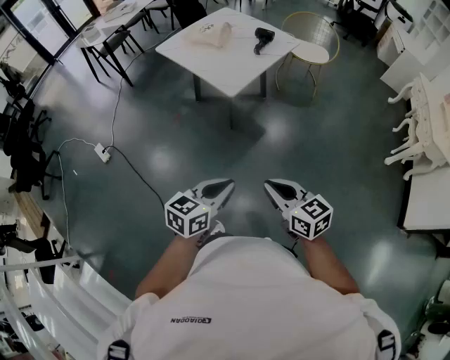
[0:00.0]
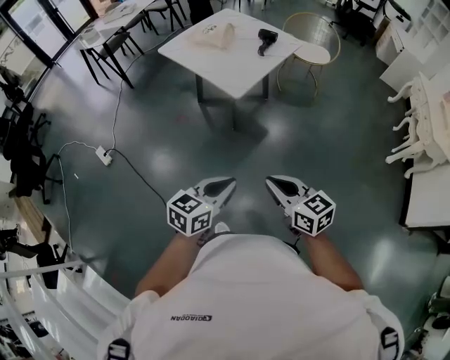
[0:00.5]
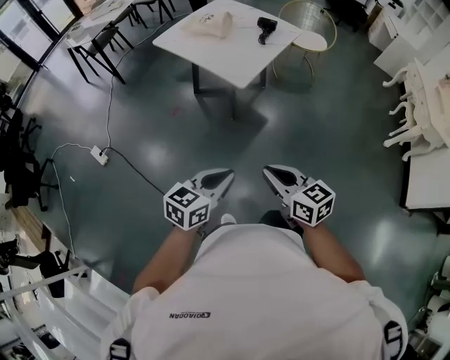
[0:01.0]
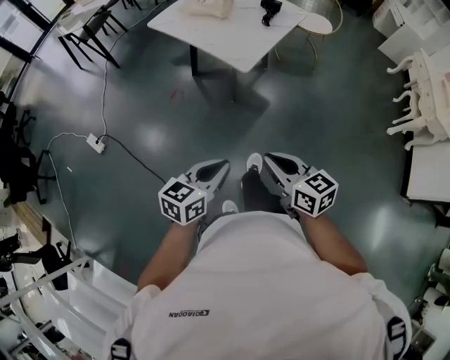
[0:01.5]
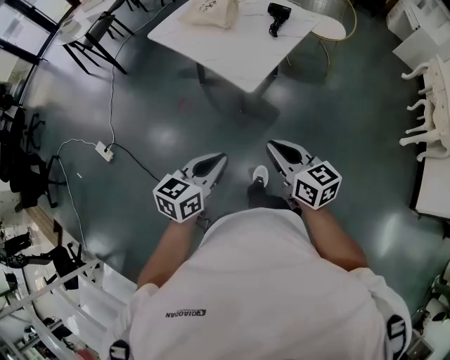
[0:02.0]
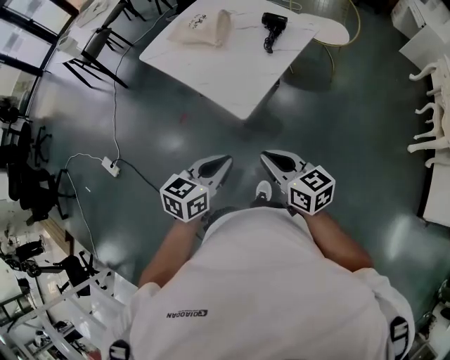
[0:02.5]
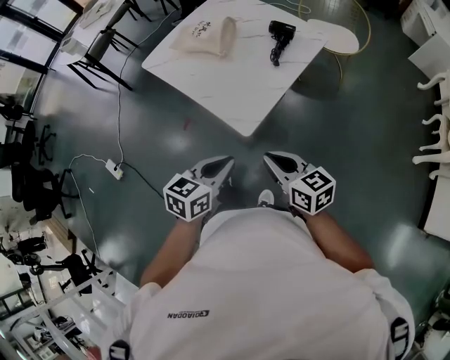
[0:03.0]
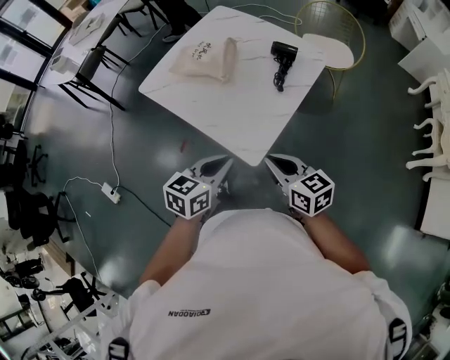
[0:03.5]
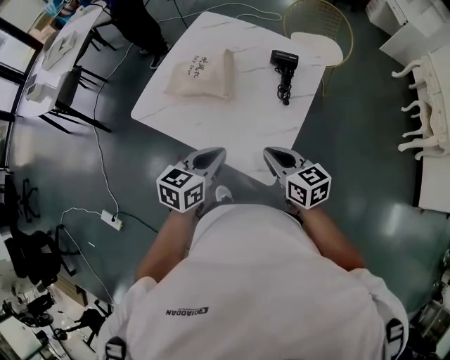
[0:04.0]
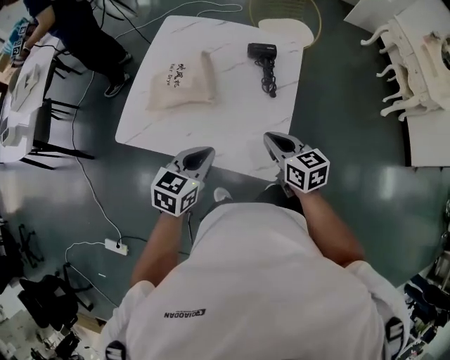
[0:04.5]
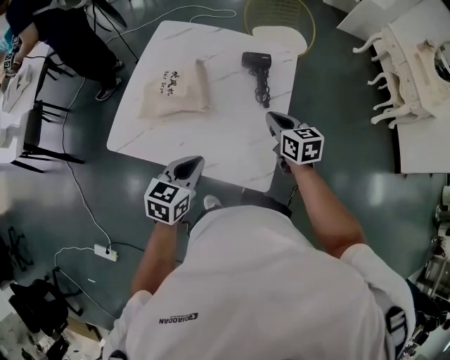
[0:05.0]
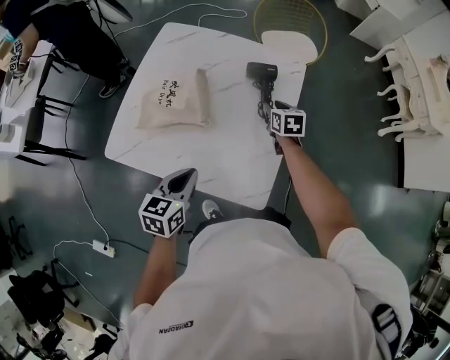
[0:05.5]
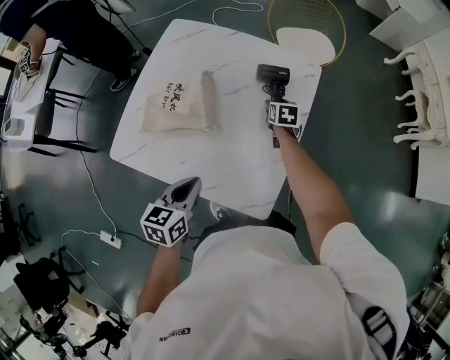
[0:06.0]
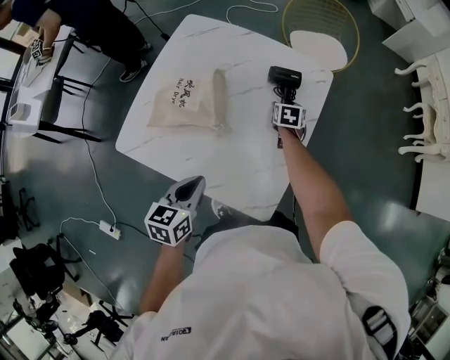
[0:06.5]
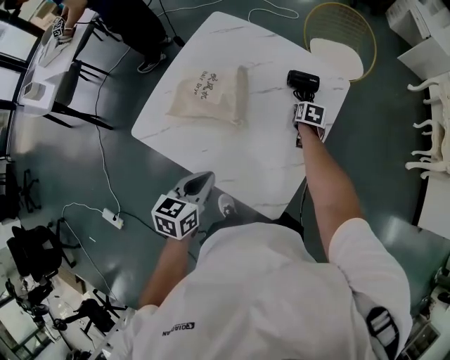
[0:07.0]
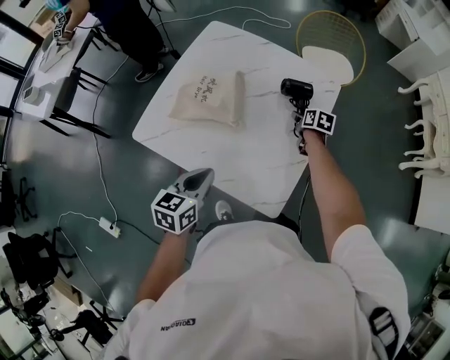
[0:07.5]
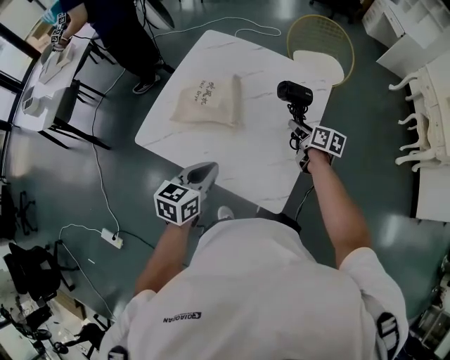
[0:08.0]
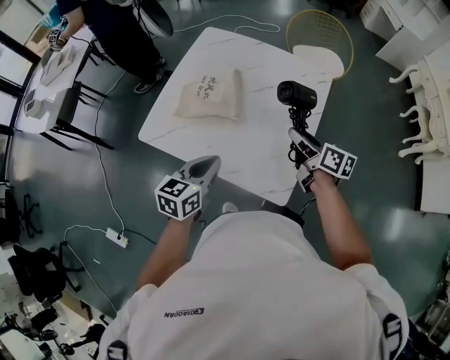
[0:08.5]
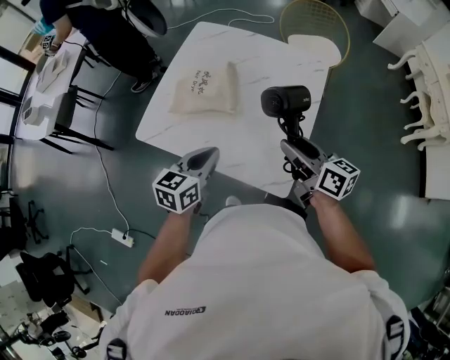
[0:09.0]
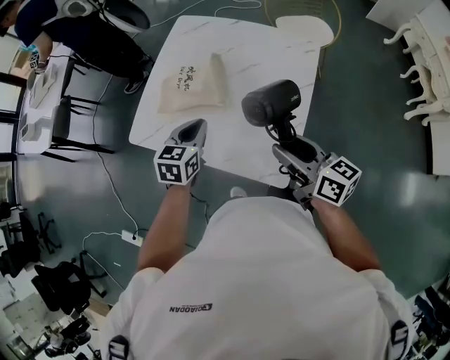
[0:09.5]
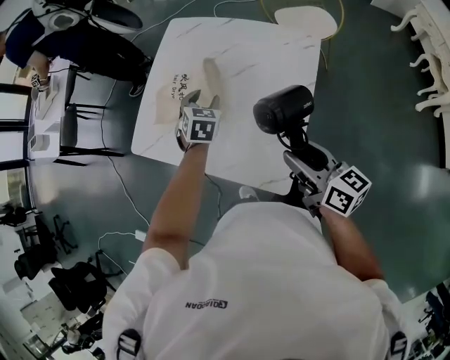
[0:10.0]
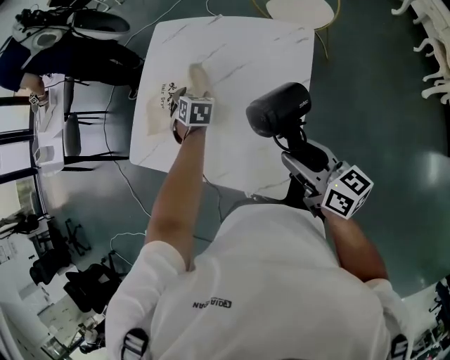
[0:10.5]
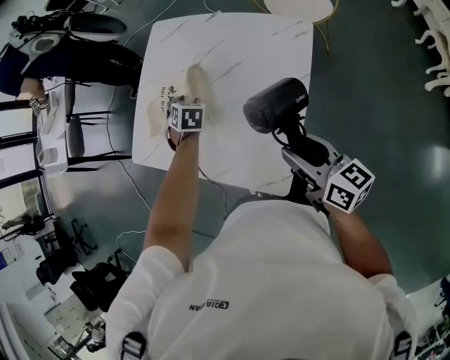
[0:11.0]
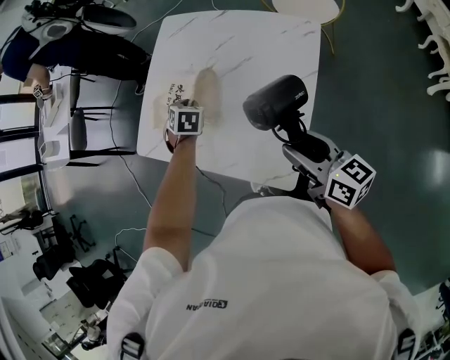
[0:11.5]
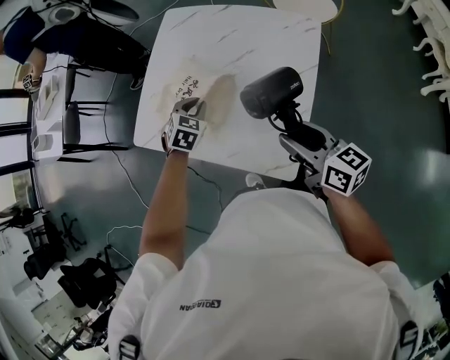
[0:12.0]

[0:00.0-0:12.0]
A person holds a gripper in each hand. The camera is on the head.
0:00.0 to 0:02.0: The grippers both shift forward and to the left by about 25 cm.
0:02.0 to 0:04.0: Both grippers are carried forward, roughly 40 cm.
0:04.0 to 0:06.0: The left gripper travels forward, downward and to the left by about 10 cm. The right gripper travels forward and downward by roughly 40 cm, changes its angle by roughly 40 degrees, and opens its fingers.
0:06.0 to 0:08.0: The left gripper shifts by about 5 cm. Meanwhile the right gripper shifts approximately 15 cm backward and upward, and changes its angle by approximately 30 degrees.
0:08.0 to 0:10.0: The right gripper goes approximately 20 cm backward and upward, and turns by about 30 degrees; the left gripper is displaced forward by about 20 cm, rotates about 40 degrees, and opens its fingers.
0:10.0 to 0:12.0: The left gripper shifts some 5 cm to the left, travels forward and back again, roughly 5 cm each way, and closes.

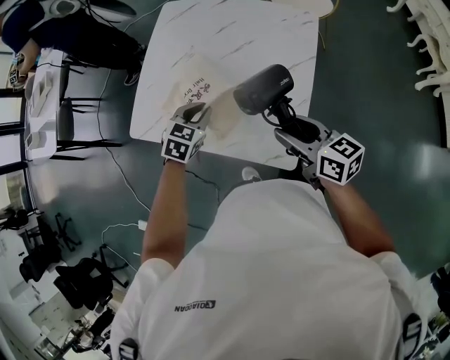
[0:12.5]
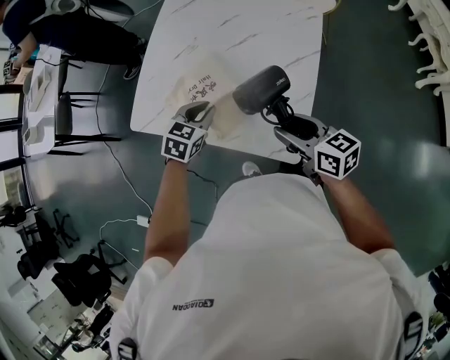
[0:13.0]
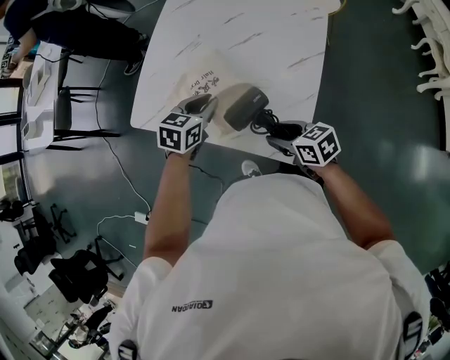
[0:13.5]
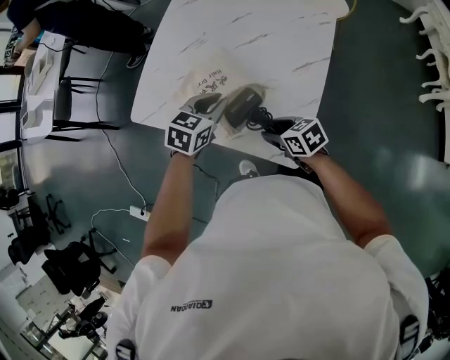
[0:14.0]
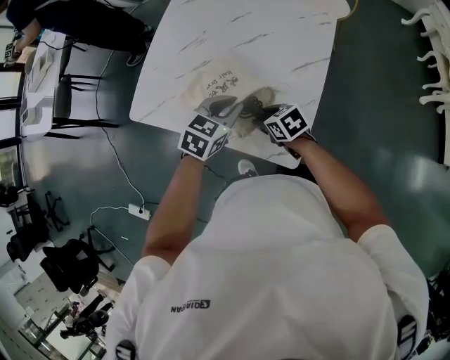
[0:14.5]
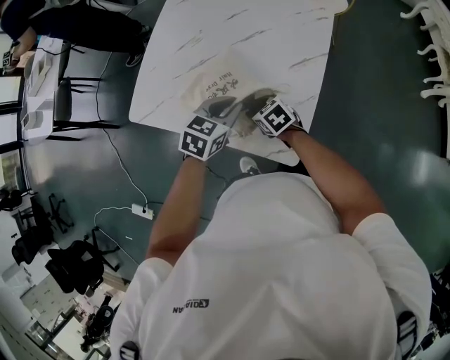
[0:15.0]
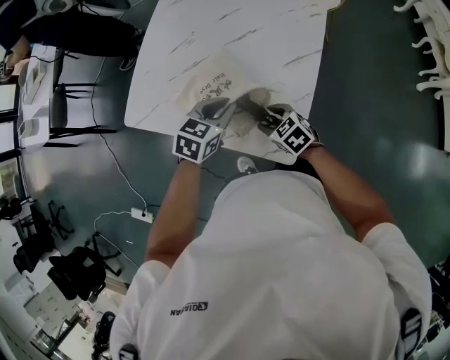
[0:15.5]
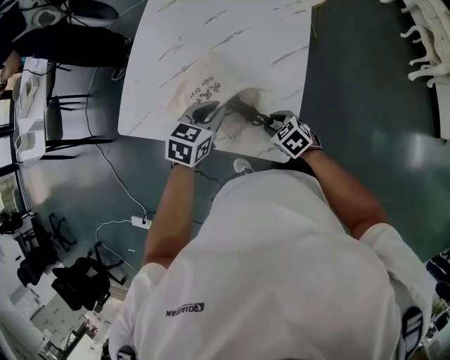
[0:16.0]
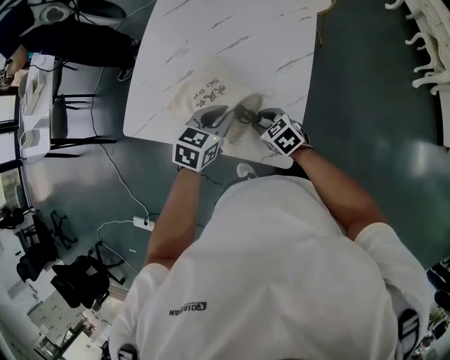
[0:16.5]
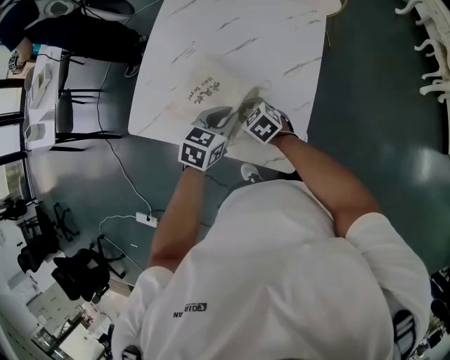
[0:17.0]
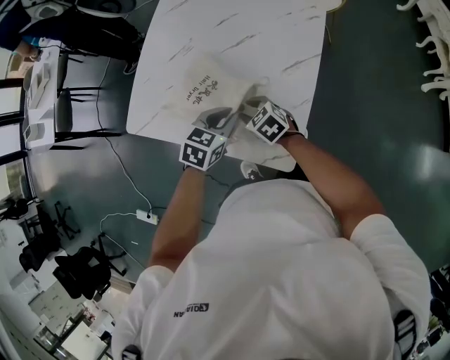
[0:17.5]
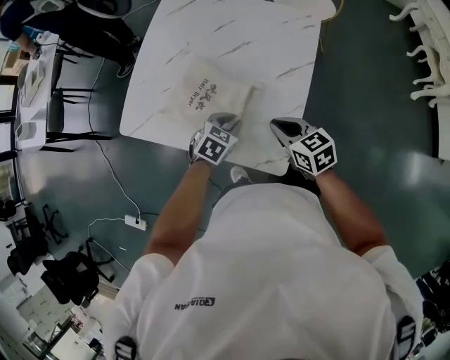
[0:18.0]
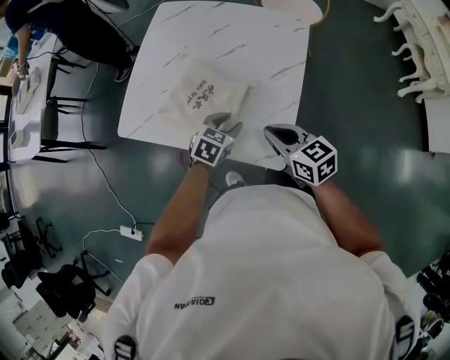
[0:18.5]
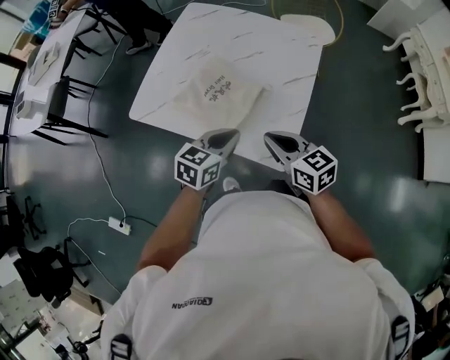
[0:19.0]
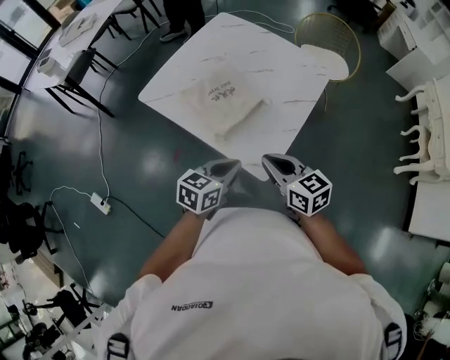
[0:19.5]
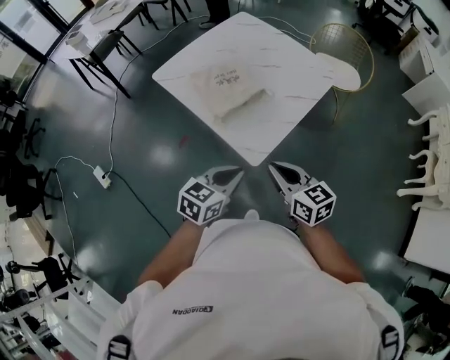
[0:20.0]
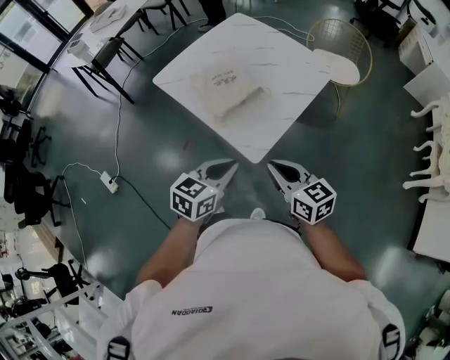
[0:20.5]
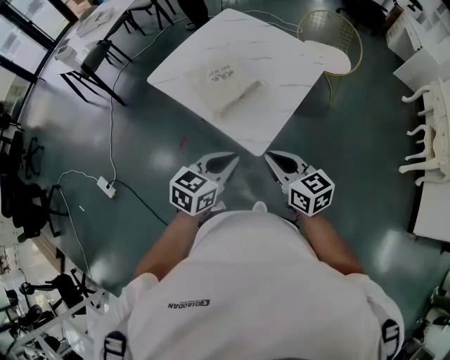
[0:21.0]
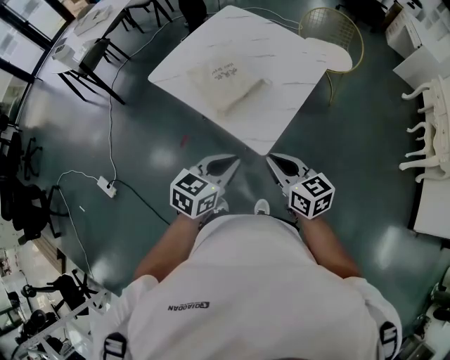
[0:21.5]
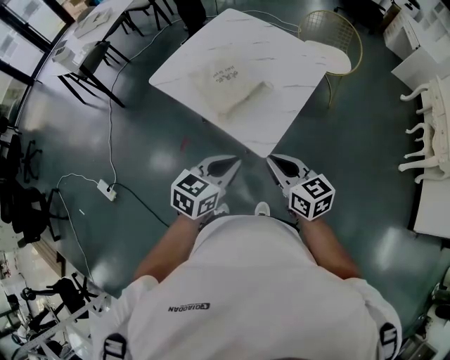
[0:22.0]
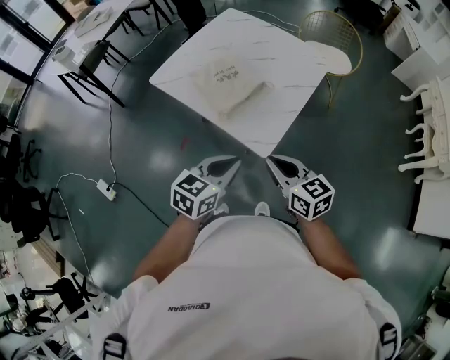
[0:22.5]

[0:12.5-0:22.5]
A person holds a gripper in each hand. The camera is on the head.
0:12.5 to 0:14.5: The left gripper is displaced to the right by roughly 5 cm, while the right gripper travels downward and to the left by roughly 20 cm, and points its fingers approximately 30 degrees further downward.
0:14.5 to 0:16.5: The right gripper travels to the right and back again, roughly 5 cm each way.
0:16.5 to 0:18.5: The left gripper heads downward, covering some 5 cm, and opens up. Meanwhile the right gripper goes about 15 cm upward, changes its angle by roughly 20 degrees, and closes.
0:18.5 to 0:20.5: The left gripper goes about 35 cm backward and upward, swivels some 40 degrees, and closes up, while the right gripper moves backward and to the right, approximately 20 cm, and turns by some 20 degrees.
0:20.5 to 0:22.5: The right gripper is displaced to the left by approximately 5 cm.

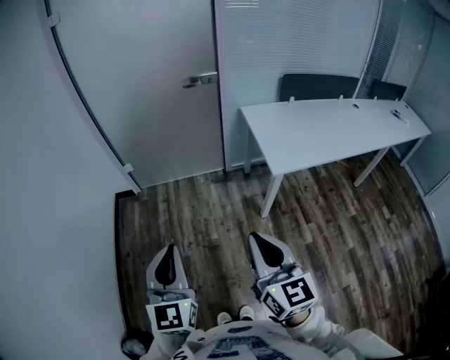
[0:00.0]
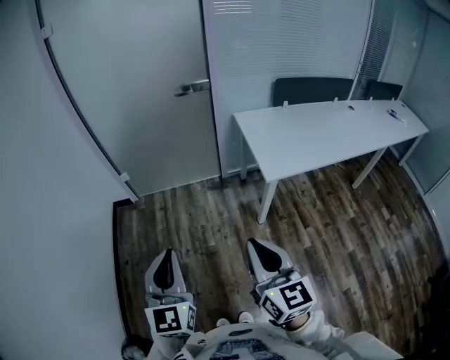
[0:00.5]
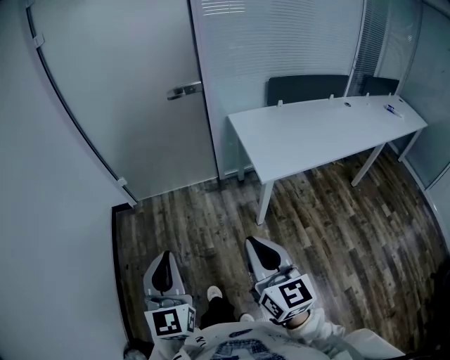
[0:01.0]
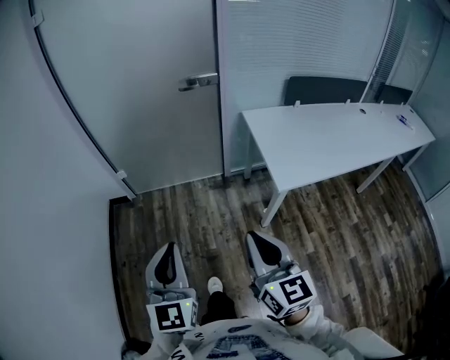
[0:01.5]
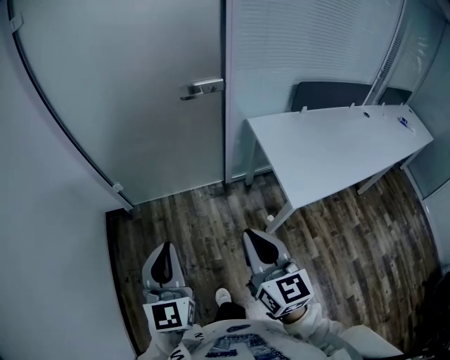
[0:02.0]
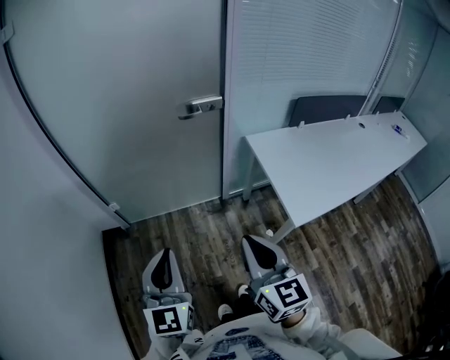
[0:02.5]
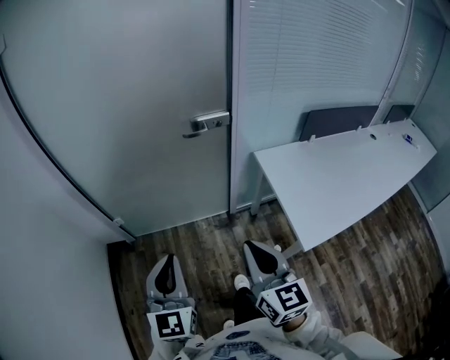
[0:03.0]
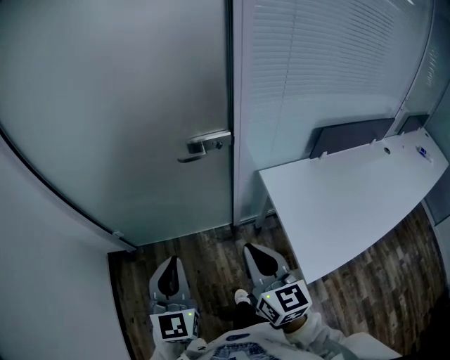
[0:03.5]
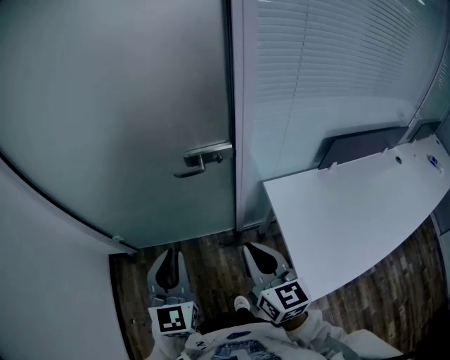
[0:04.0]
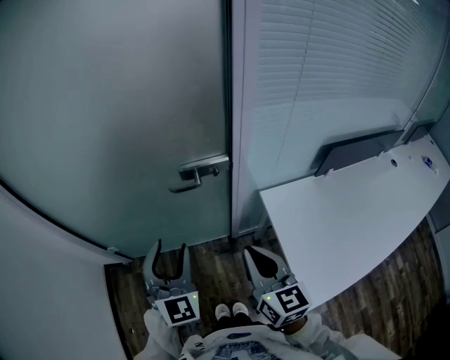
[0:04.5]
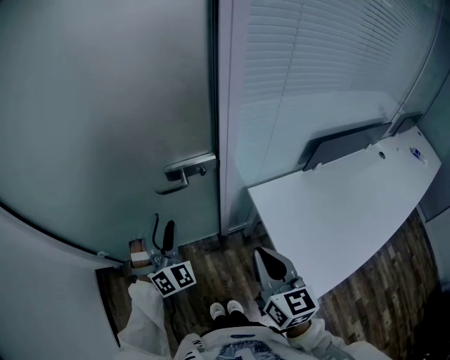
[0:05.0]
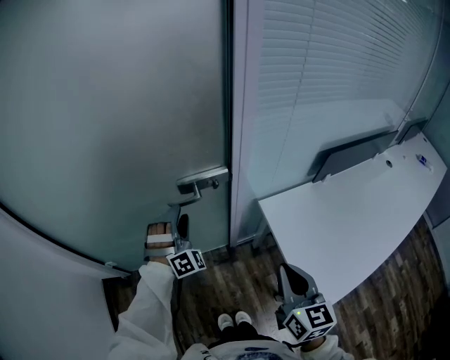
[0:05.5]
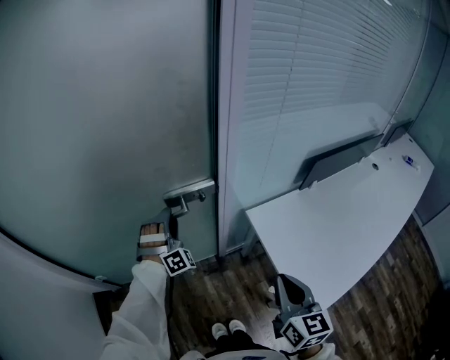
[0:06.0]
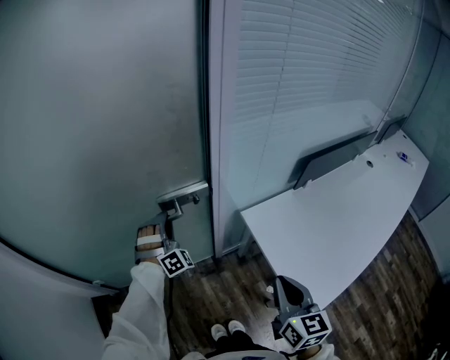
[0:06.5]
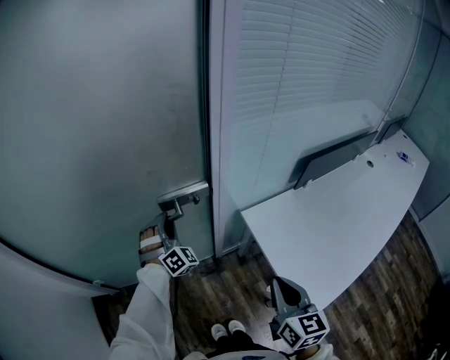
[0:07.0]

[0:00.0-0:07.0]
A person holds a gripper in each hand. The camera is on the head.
0:00.0 to 0:02.0: Both grippers move forward, some 25 cm.
0:02.0 to 0:03.5: The two grippers go approximately 30 cm forward.
0:03.5 to 0:05.0: The left gripper is displaced forward by about 25 cm, twists roughly 50 degrees clockwise, seen from behind, and opens up. Meanwhile the right gripper shifts approximately 15 cm forward and to the right.
0:05.0 to 0:07.0: The left gripper travels forward and downward by approximately 15 cm, and closes. The right gripper ends up some 5 cm from where it was.
